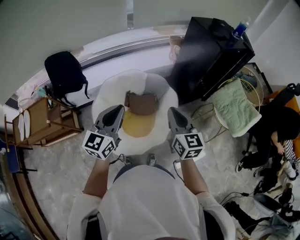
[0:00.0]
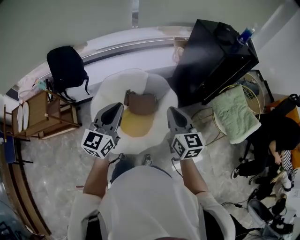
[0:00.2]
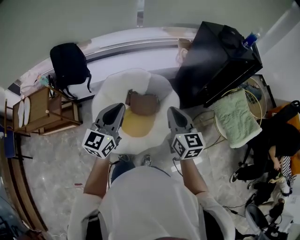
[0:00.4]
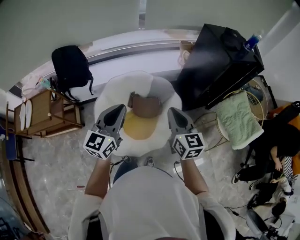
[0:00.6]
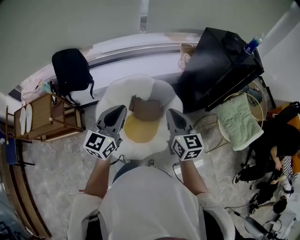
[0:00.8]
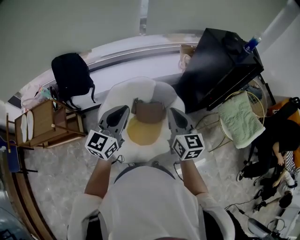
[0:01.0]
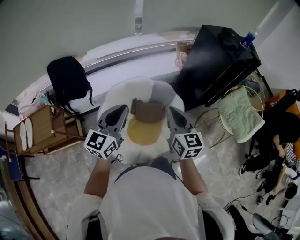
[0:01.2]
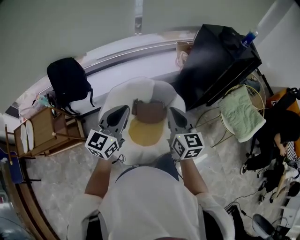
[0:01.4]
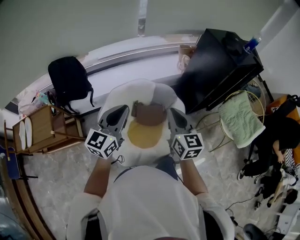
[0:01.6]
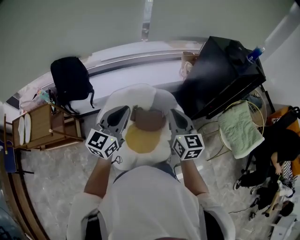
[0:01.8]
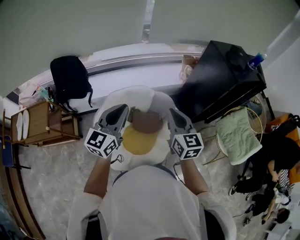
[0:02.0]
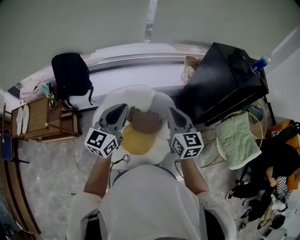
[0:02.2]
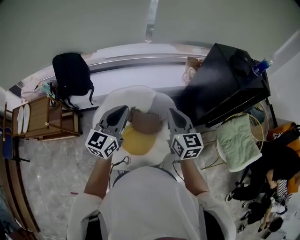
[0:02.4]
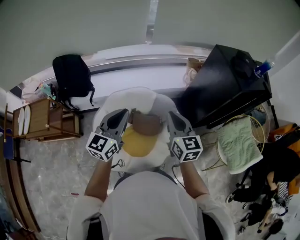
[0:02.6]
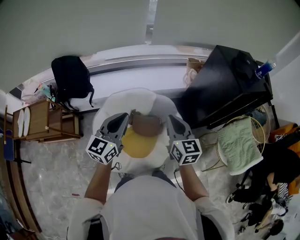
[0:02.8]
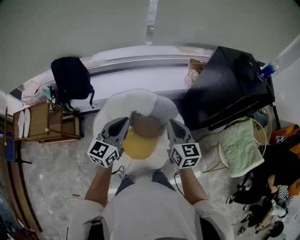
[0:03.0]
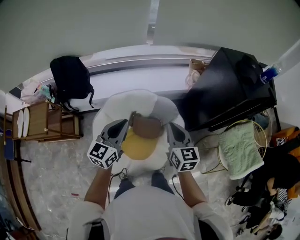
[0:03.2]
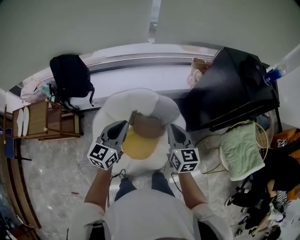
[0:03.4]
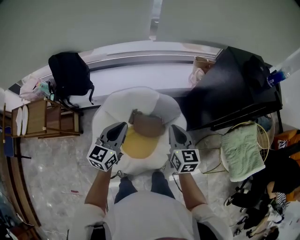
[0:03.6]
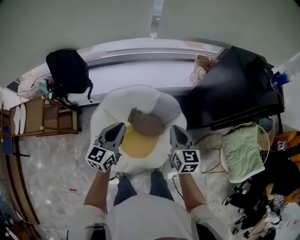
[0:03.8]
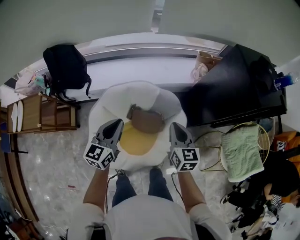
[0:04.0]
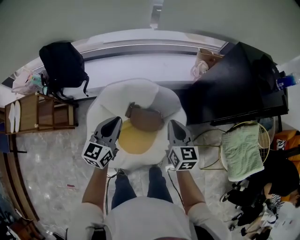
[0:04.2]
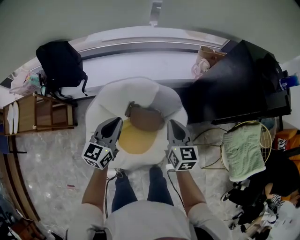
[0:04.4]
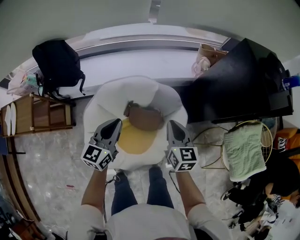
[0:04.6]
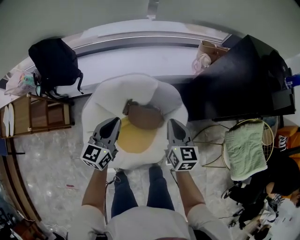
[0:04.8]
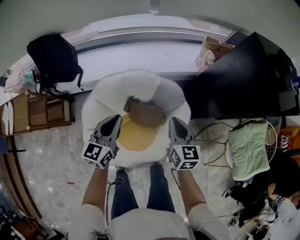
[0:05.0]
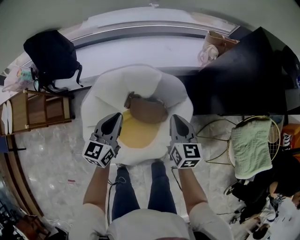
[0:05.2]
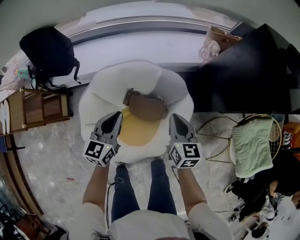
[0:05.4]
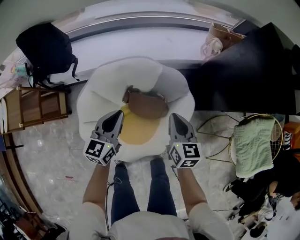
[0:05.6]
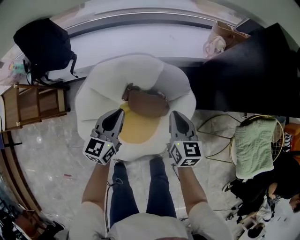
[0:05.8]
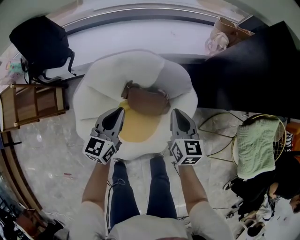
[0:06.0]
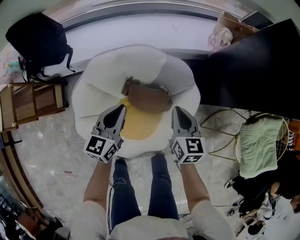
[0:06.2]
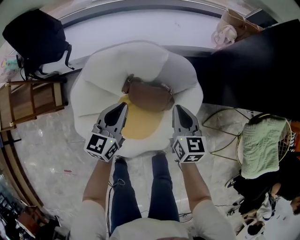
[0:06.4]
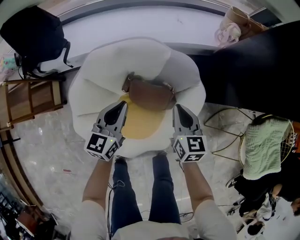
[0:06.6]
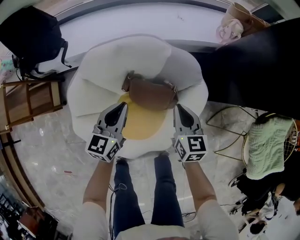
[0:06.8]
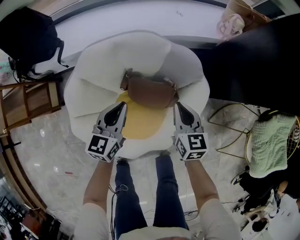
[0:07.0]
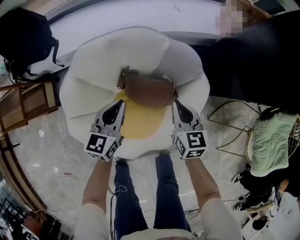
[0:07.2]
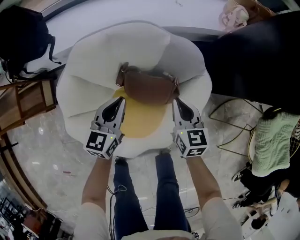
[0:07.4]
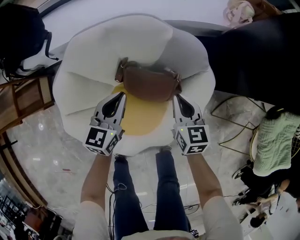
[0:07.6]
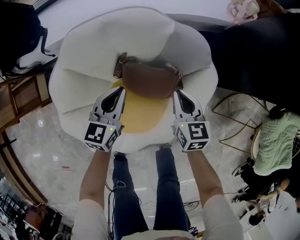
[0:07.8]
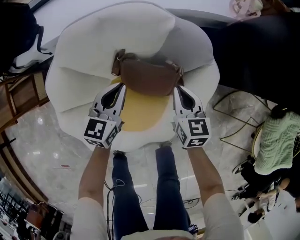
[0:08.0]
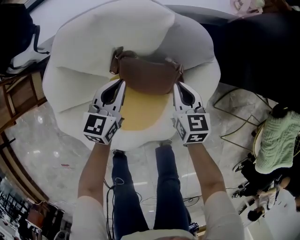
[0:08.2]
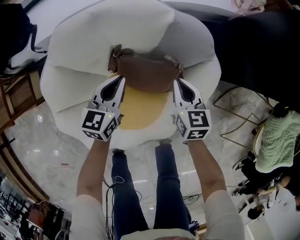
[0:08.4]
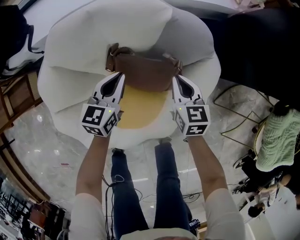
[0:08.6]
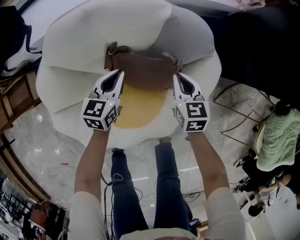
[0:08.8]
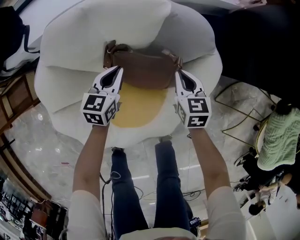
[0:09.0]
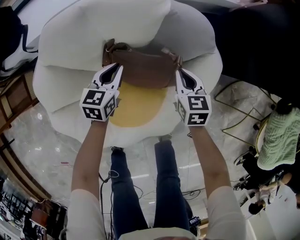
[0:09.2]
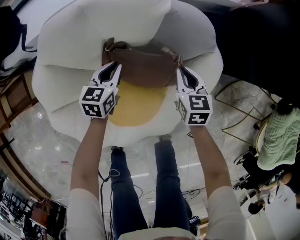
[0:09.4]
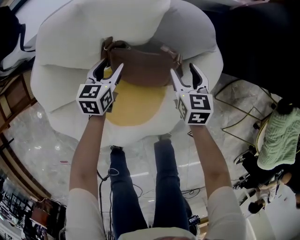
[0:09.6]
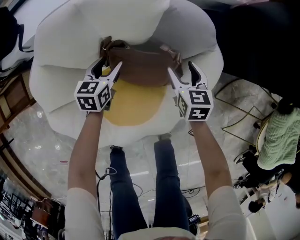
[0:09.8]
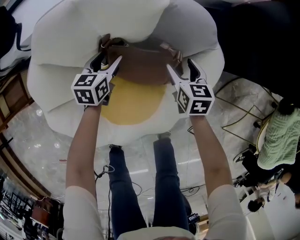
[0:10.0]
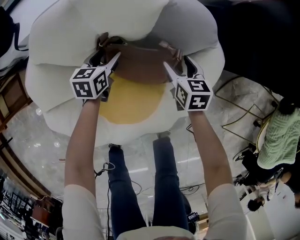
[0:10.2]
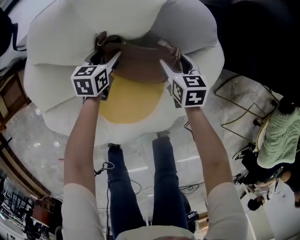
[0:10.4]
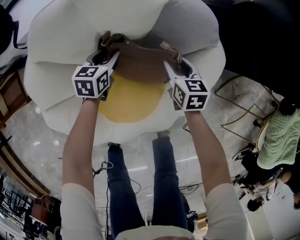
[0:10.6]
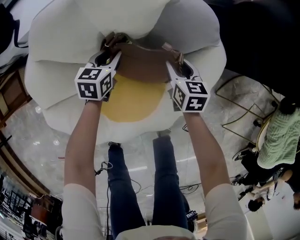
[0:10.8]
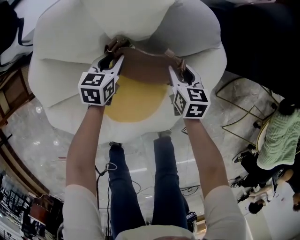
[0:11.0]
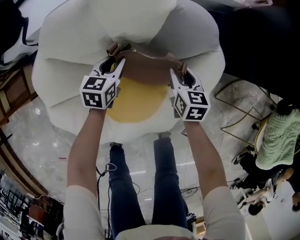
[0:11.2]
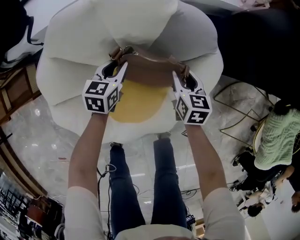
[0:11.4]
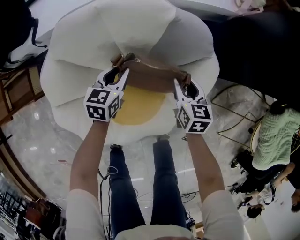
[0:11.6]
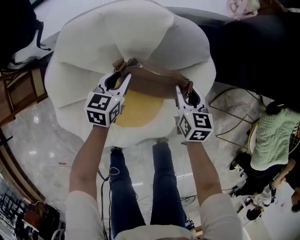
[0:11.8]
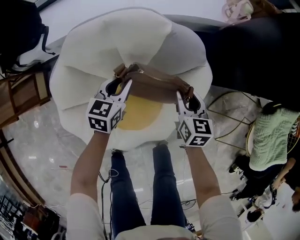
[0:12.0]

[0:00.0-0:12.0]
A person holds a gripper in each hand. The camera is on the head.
0:00.0 to 0:01.6: The left gripper travels forward and to the left by about 10 cm. The right gripper shifts approximately 10 cm to the left and forward.
0:01.6 to 0:03.0: The grippers both shift forward and to the right by about 10 cm.
0:03.0 to 0:04.4: The grippers both shift downward and forward by approximately 15 cm.
0:04.4 to 0:06.0: Both grippers travel together downward, some 15 cm.
0:06.0 to 0:07.6: Both grippers travel together downward, approximately 20 cm.
0:07.6 to 0:09.0: The grippers both shift downward by about 15 cm.
0:09.0 to 0:10.4: The grippers both shift downward by some 5 cm. The right gripper opens. The left gripper opens up.
0:10.4 to 0:12.0: Both grippers move upward, roughly 15 cm. The right gripper closes; the left gripper closes.

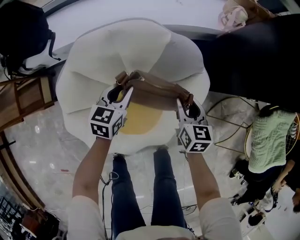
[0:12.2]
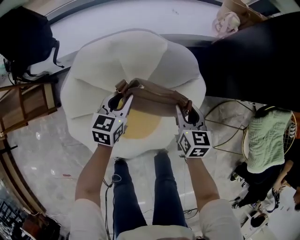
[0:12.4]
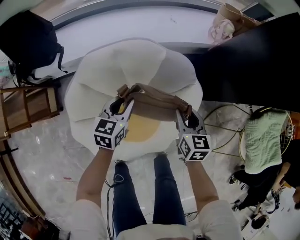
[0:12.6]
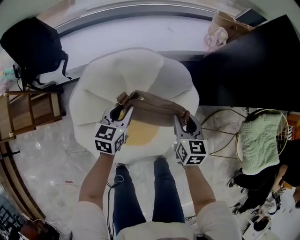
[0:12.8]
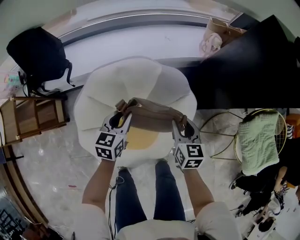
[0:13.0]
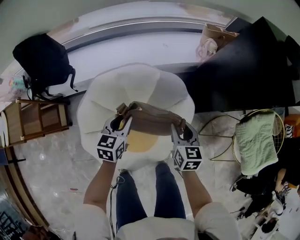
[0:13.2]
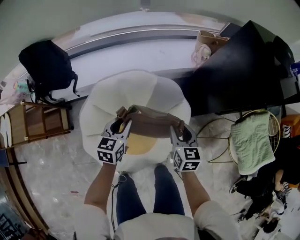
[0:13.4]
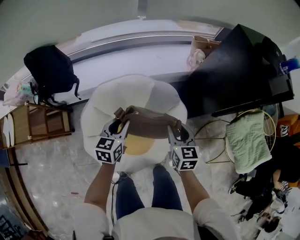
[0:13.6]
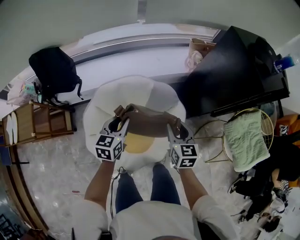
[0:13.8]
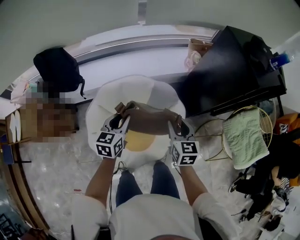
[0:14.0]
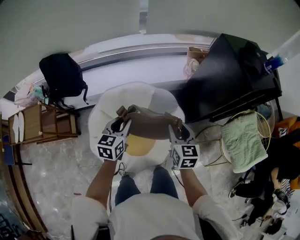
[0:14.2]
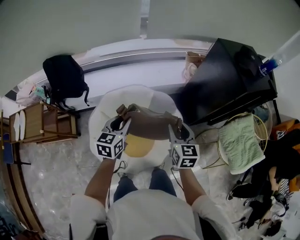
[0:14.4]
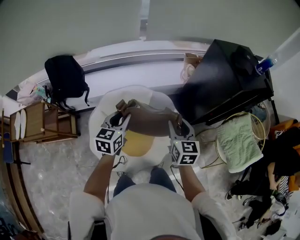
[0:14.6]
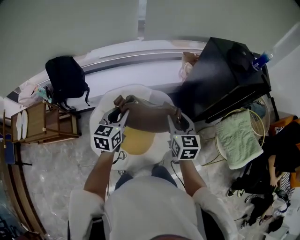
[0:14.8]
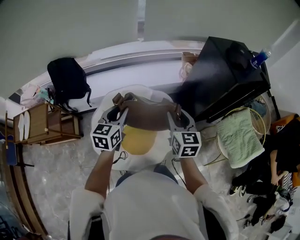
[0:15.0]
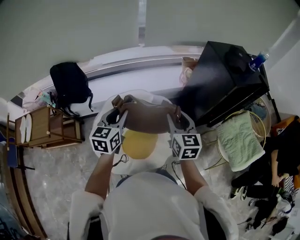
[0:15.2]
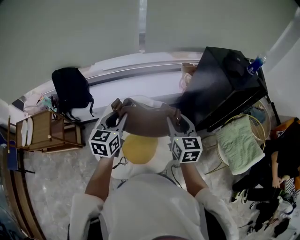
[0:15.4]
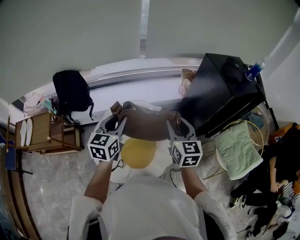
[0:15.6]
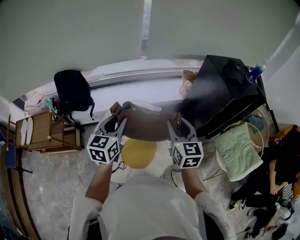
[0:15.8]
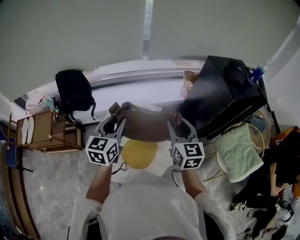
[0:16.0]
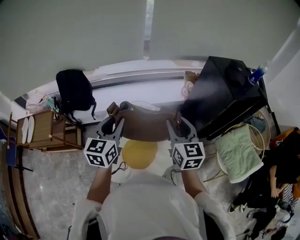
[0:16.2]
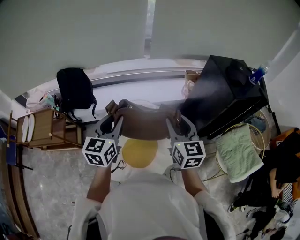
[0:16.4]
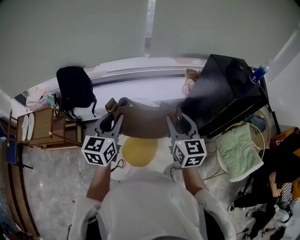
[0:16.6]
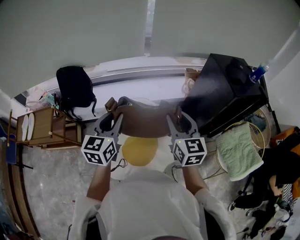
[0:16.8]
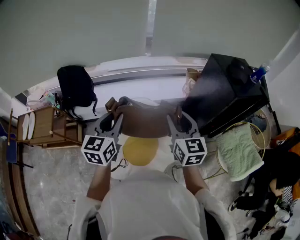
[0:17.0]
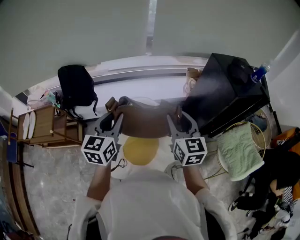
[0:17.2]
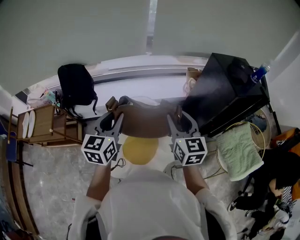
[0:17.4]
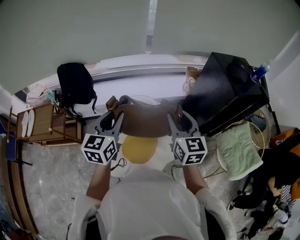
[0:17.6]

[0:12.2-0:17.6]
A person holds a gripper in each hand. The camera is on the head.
0:12.2 to 0:13.6: Both grippers travel together upward, roughly 25 cm.
0:13.6 to 0:15.0: The grippers both shift upward by some 20 cm.
0:15.0 to 0:16.2: Both grippers travel together upward, some 10 cm.
0:16.2 to 0:17.6: The grippers make only small movements.

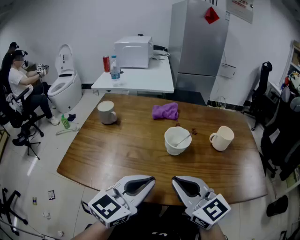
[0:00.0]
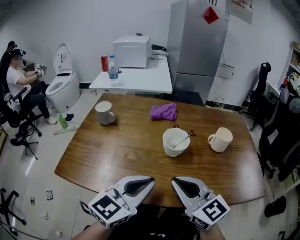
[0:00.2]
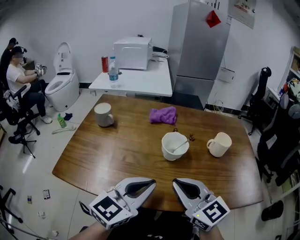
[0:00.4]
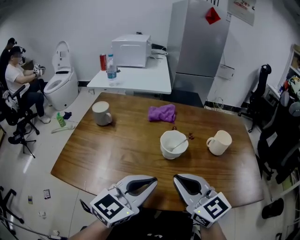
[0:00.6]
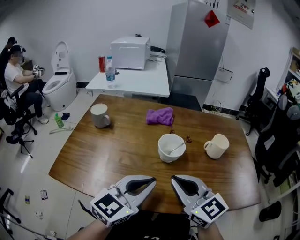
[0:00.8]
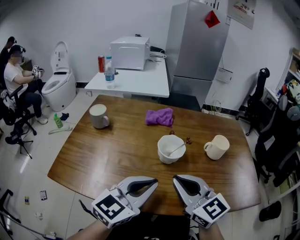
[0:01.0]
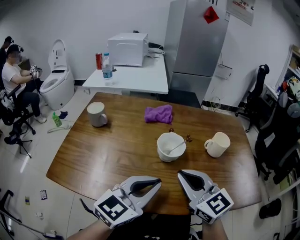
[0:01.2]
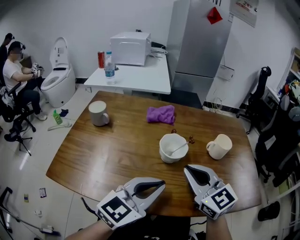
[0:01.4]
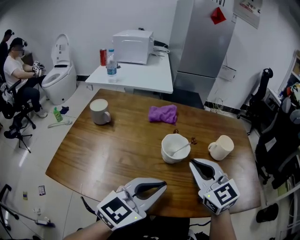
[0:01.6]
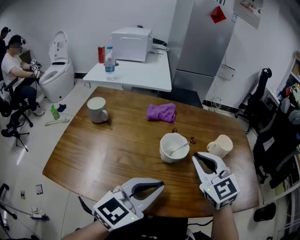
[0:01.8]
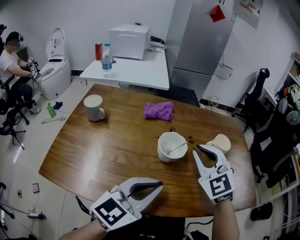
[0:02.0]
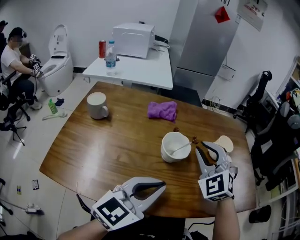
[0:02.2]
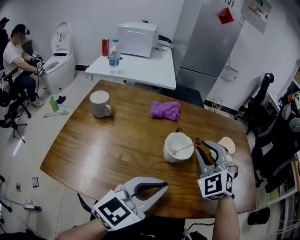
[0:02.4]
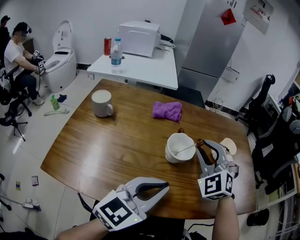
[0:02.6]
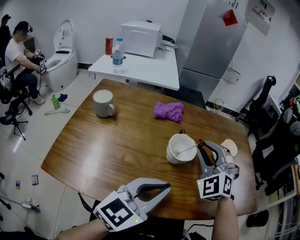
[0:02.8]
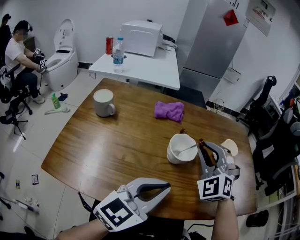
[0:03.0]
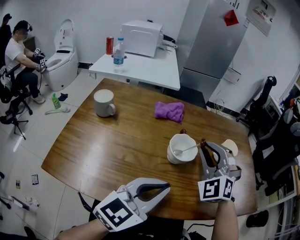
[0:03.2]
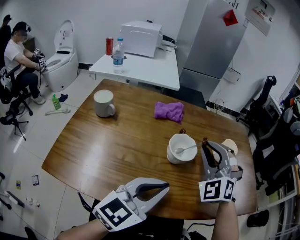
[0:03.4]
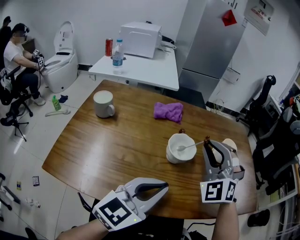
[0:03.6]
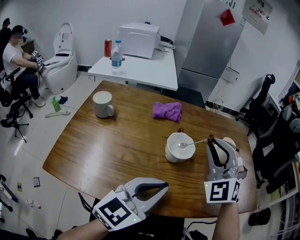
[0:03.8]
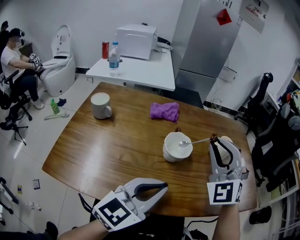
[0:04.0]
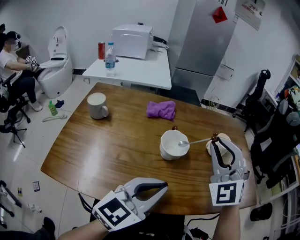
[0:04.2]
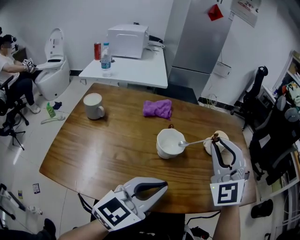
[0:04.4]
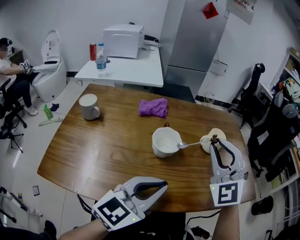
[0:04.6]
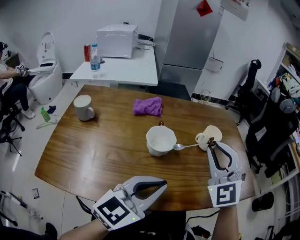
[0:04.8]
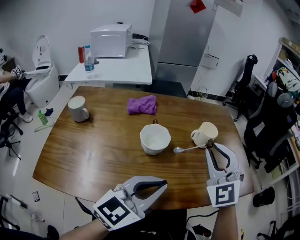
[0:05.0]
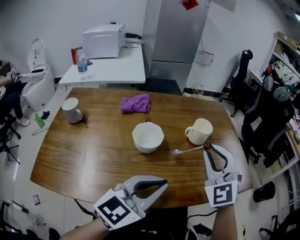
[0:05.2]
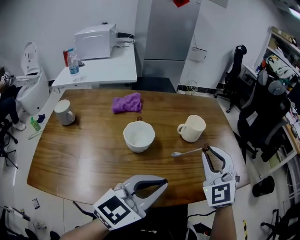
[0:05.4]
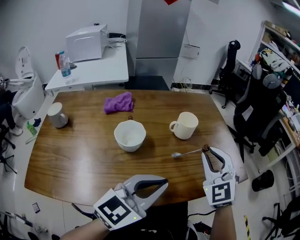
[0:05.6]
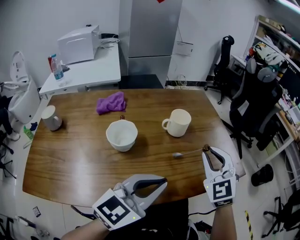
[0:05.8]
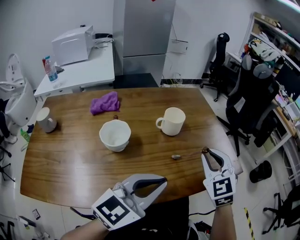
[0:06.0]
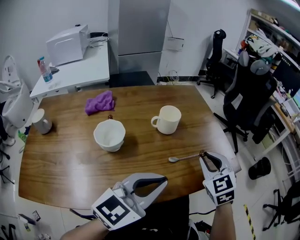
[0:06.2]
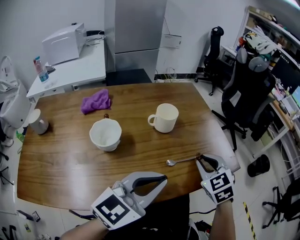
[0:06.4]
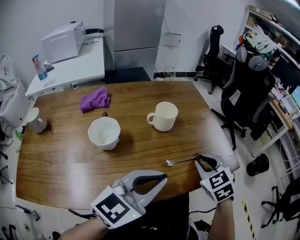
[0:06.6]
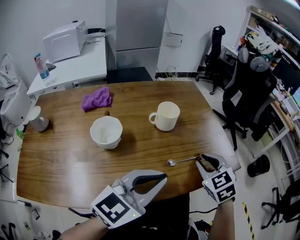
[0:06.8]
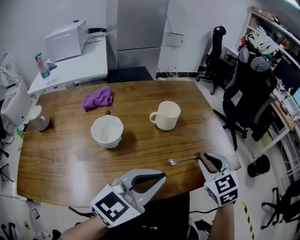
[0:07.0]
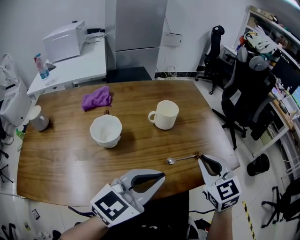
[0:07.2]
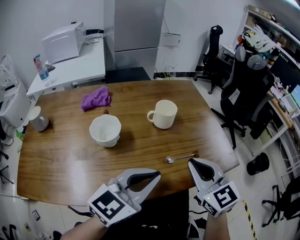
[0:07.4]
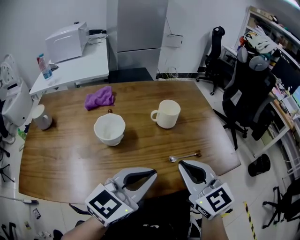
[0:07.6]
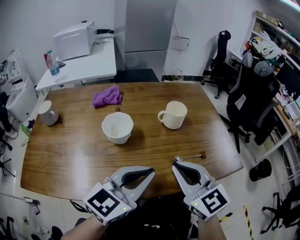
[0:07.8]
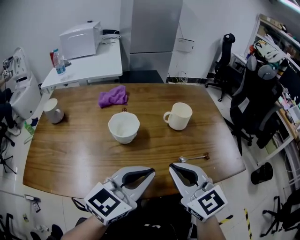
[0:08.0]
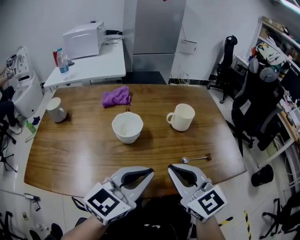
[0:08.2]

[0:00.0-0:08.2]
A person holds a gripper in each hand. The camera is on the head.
0:00.0 to 0:01.6: The right gripper heads forward and to the right, covering approximately 10 cm. Meanwhile the left gripper ends up about 5 cm from where it was.
0:01.6 to 0:03.2: The right gripper is displaced forward by some 5 cm, and rotates around the line of its fingers by approximately 50 degrees, counterclockwise from behind.
0:03.2 to 0:05.0: The left gripper travels to the right by about 5 cm. The right gripper heads to the right, covering about 10 cm, and rotates about 20 degrees.
0:05.0 to 0:06.6: The left gripper shifts about 10 cm to the right; the right gripper is displaced to the right and downward by some 20 cm, and points its fingers about 30 degrees further downward.
0:06.6 to 0:08.2: The left gripper moves to the left, approximately 10 cm, while the right gripper is displaced to the left, backward and upward by approximately 20 cm, and rotates roughly 40 degrees.
